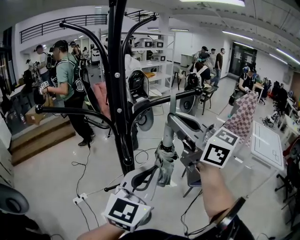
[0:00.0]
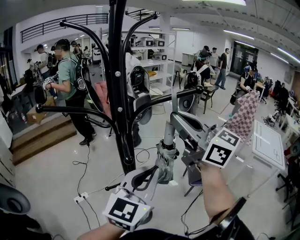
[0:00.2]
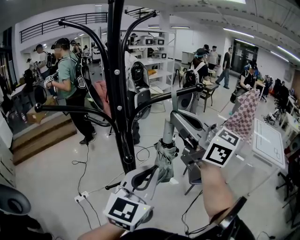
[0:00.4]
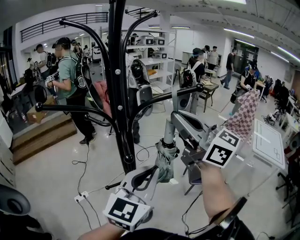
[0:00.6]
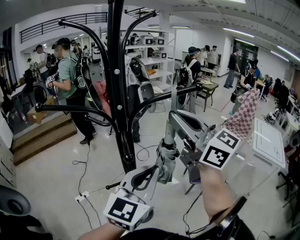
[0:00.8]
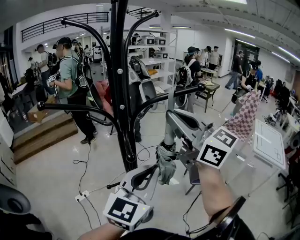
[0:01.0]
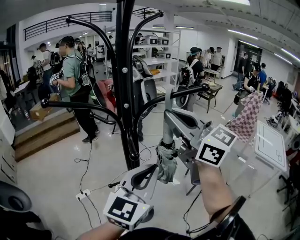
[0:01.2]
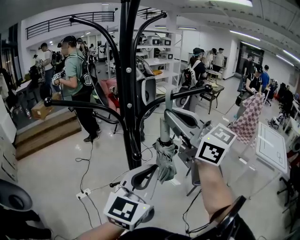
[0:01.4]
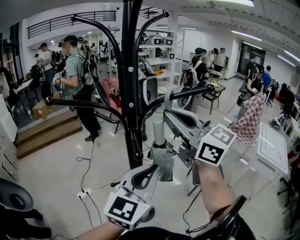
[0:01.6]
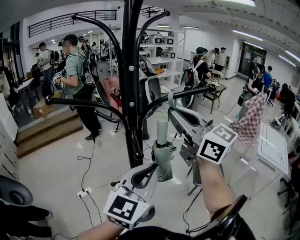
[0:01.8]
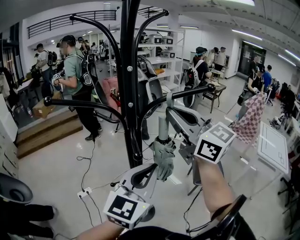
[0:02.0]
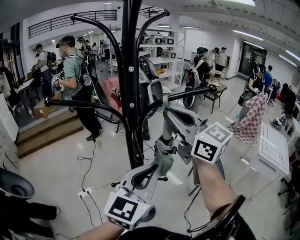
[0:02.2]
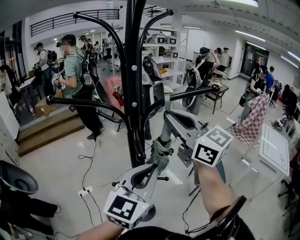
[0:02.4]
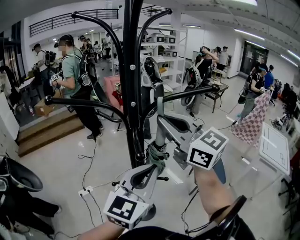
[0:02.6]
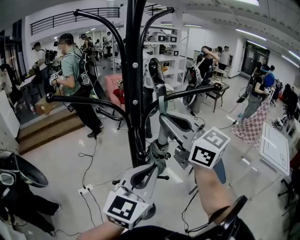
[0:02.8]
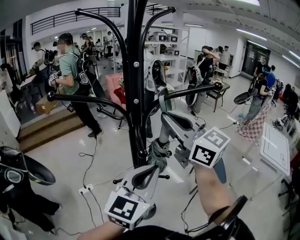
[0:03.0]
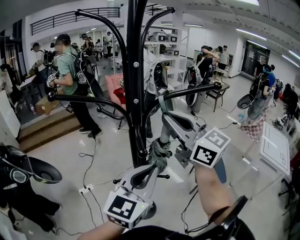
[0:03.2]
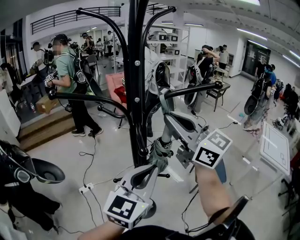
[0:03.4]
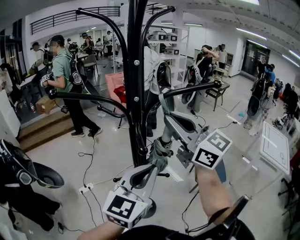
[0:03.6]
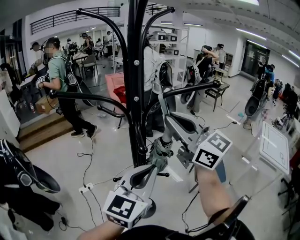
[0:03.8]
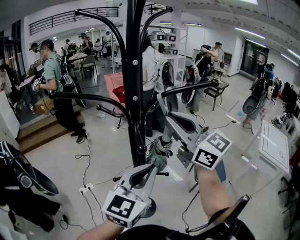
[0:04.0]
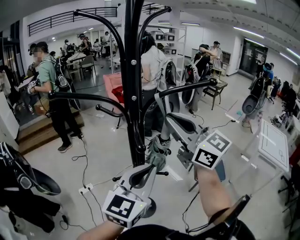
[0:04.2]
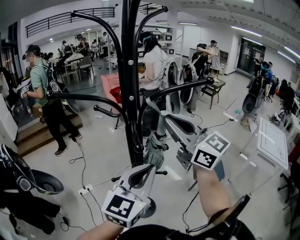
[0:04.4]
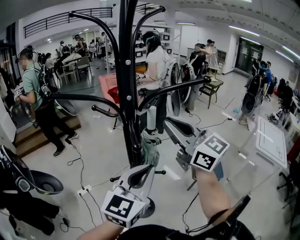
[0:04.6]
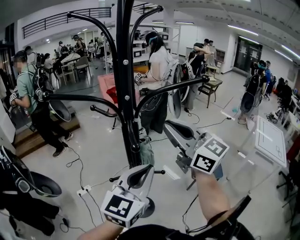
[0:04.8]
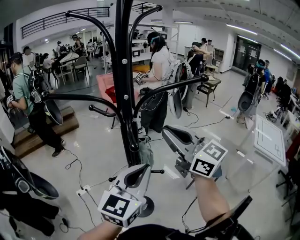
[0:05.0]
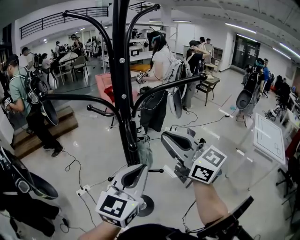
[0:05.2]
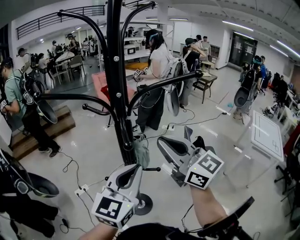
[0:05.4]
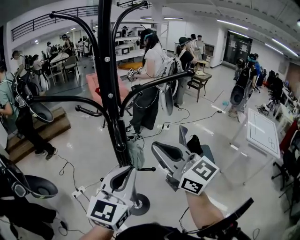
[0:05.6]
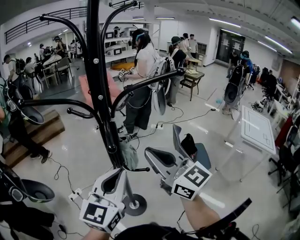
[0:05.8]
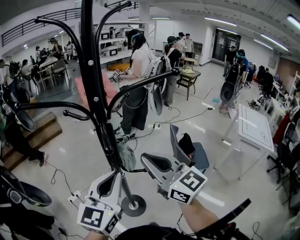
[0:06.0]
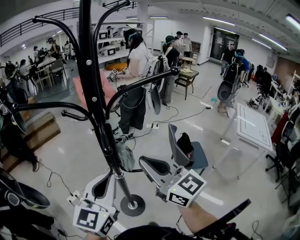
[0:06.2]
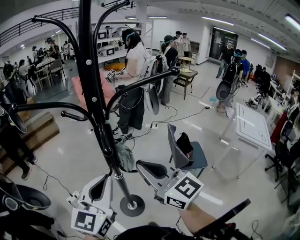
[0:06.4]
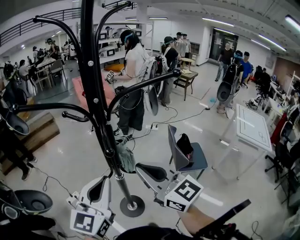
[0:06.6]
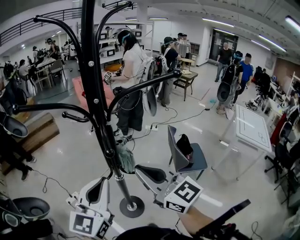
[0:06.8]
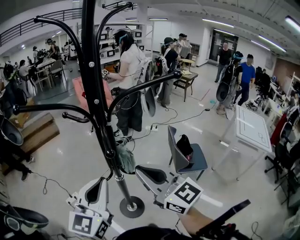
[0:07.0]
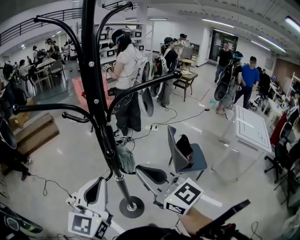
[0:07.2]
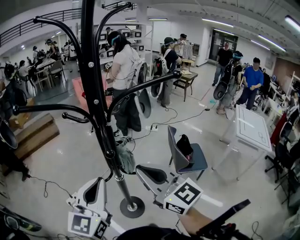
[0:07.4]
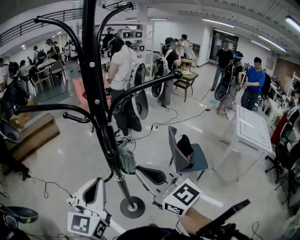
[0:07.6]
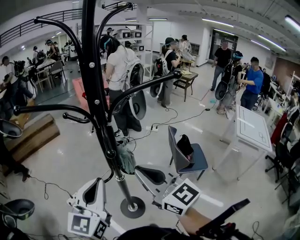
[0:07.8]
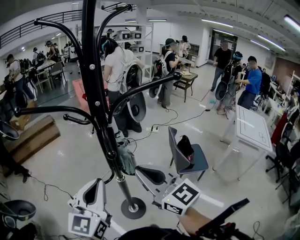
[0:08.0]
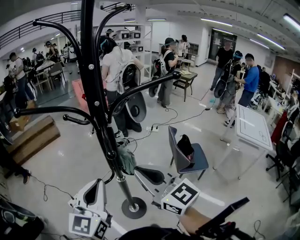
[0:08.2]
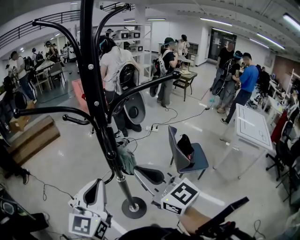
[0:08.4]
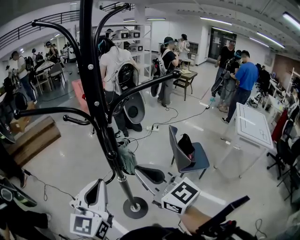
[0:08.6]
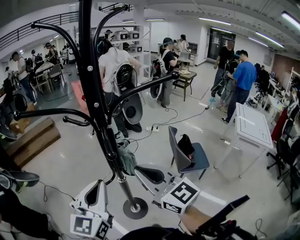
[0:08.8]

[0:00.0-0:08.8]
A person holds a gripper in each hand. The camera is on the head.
0:00.0 to 0:01.4: The grippers move only a little.
0:01.4 to 0:04.4: The grippers move only a little.
0:04.4 to 0:05.8: The right gripper goes roughly 10 cm downward and backward.
0:05.8 to 0:07.4: The left gripper moves to the left, about 5 cm.
0:07.4 to 0:08.8: There are only small adjustments of the grippers.

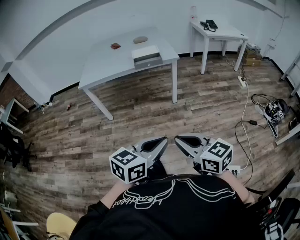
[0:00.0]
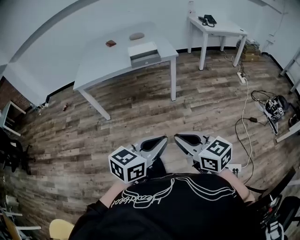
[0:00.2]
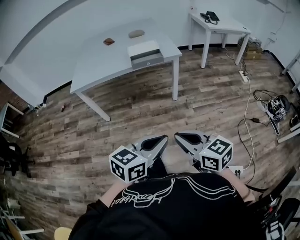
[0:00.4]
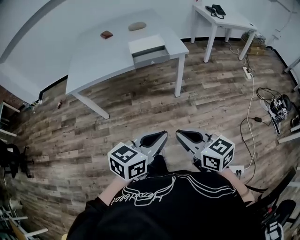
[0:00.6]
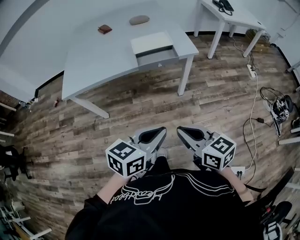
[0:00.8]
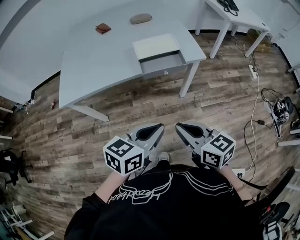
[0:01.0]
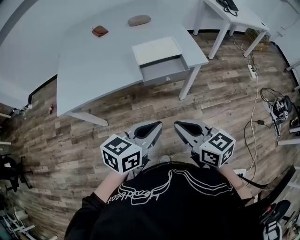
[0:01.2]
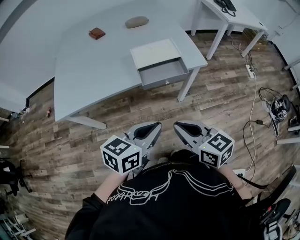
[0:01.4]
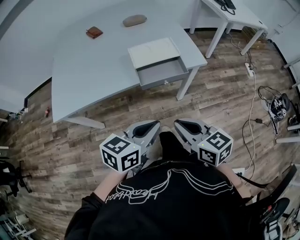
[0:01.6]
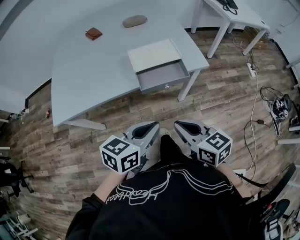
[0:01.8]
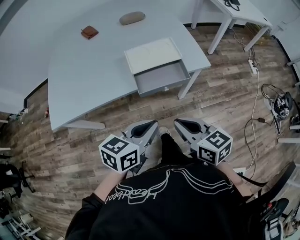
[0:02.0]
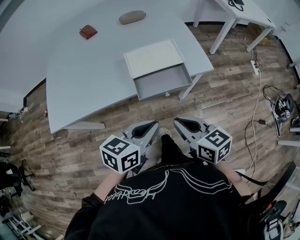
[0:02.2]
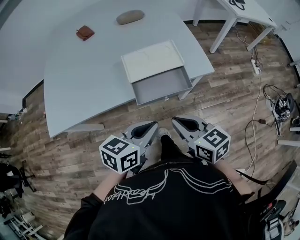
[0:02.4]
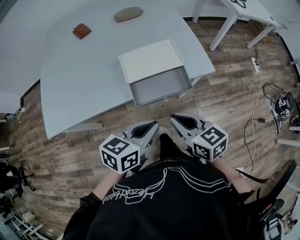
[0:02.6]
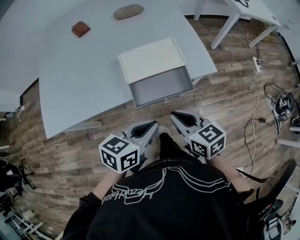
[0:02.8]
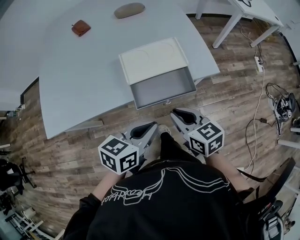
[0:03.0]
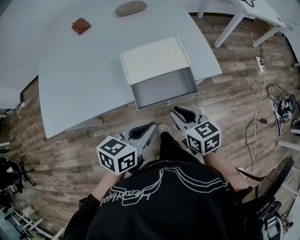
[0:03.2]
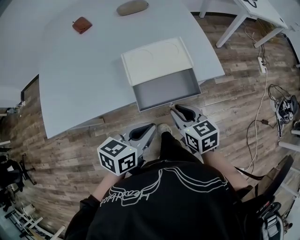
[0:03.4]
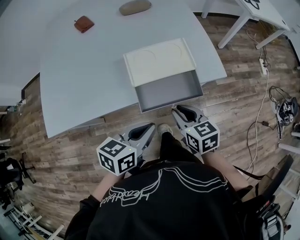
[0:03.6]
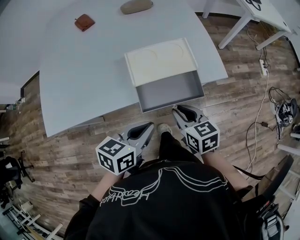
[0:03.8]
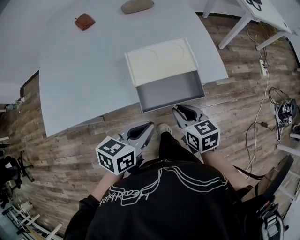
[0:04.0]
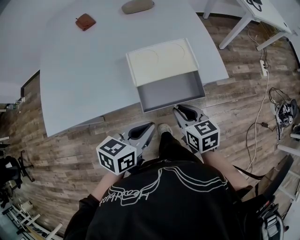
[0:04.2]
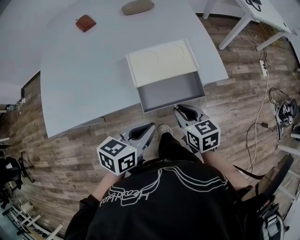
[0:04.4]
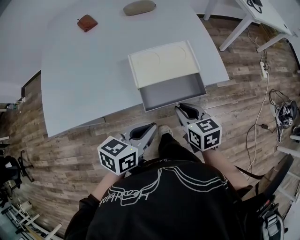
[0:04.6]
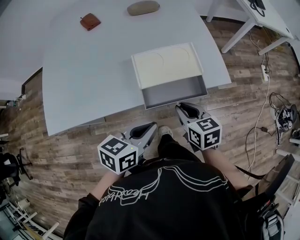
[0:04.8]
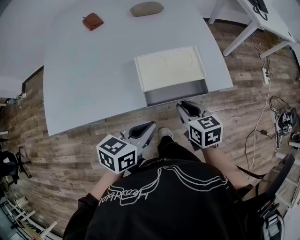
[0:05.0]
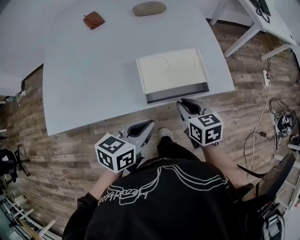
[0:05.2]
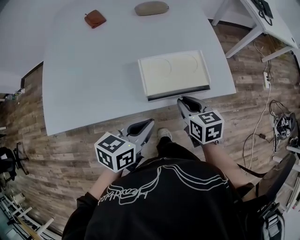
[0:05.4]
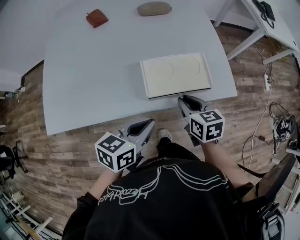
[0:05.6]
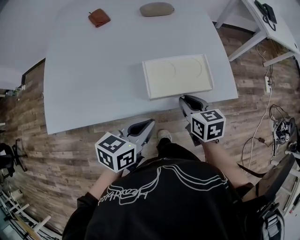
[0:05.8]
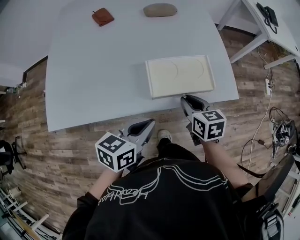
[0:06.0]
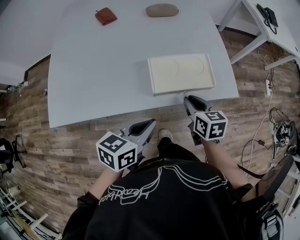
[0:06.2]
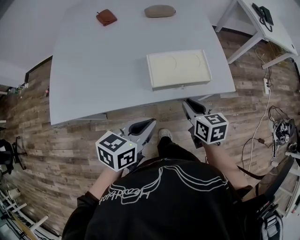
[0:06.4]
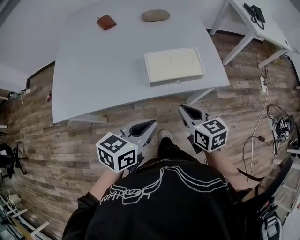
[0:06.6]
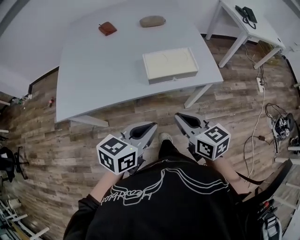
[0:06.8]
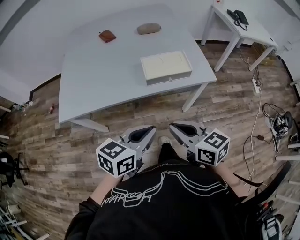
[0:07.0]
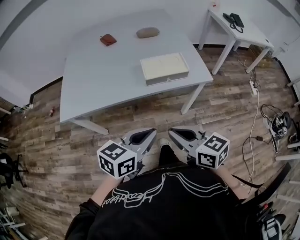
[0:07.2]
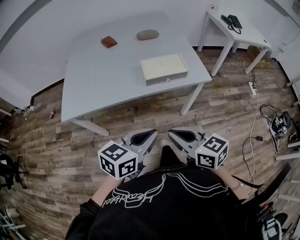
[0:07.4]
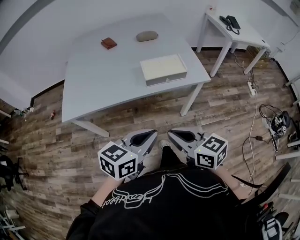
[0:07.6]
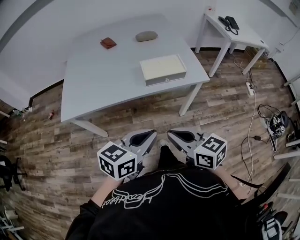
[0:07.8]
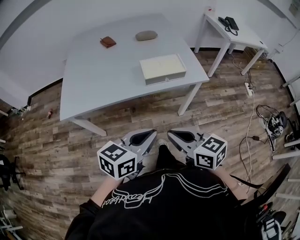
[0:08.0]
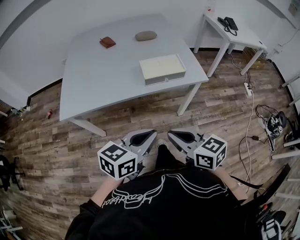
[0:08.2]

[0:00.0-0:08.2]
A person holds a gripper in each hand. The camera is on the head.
0:00.0 to 0:01.6: Both grippers are carried forward, approximately 50 cm.
0:01.6 to 0:03.2: The grippers both shift forward and downward by some 20 cm.
0:03.2 to 0:05.0: The left gripper changes place by about 5 cm. The right gripper heads forward, covering roughly 5 cm.
0:05.0 to 0:06.6: The left gripper moves approximately 5 cm. The right gripper is displaced upward and backward by about 10 cm.
0:06.6 to 0:08.2: Both grippers travel together backward and upward, some 20 cm.

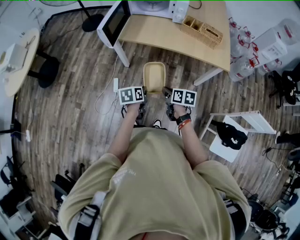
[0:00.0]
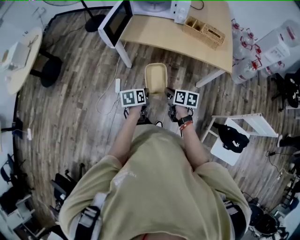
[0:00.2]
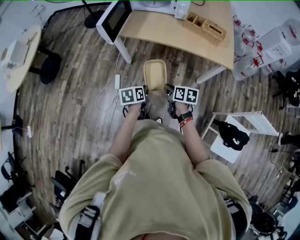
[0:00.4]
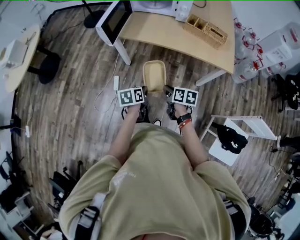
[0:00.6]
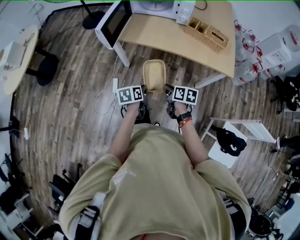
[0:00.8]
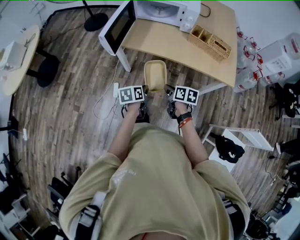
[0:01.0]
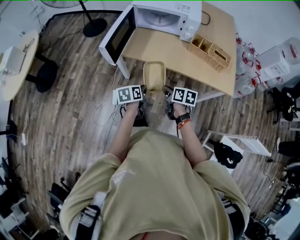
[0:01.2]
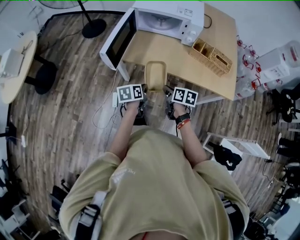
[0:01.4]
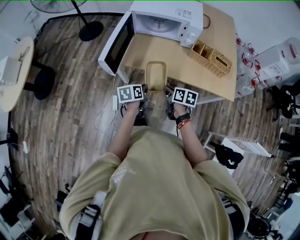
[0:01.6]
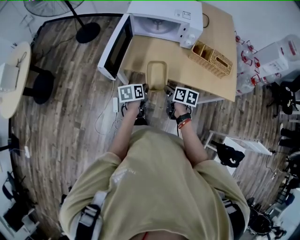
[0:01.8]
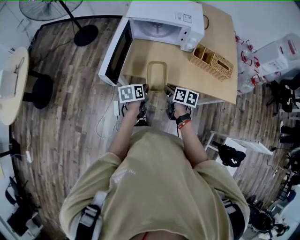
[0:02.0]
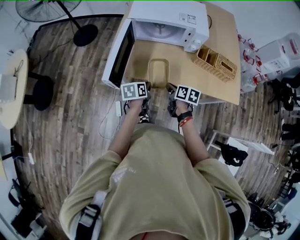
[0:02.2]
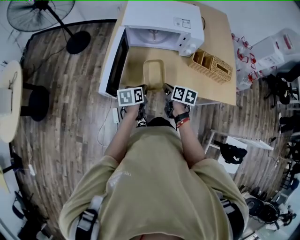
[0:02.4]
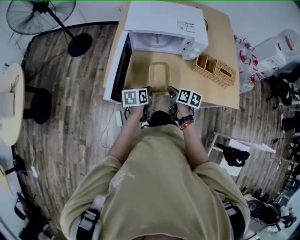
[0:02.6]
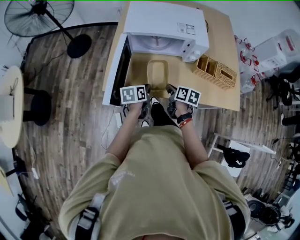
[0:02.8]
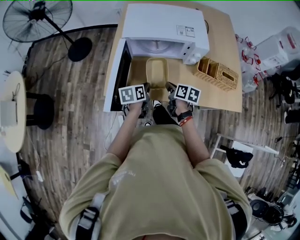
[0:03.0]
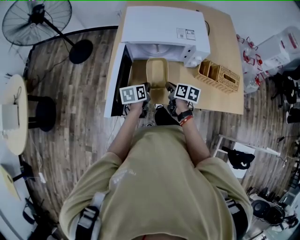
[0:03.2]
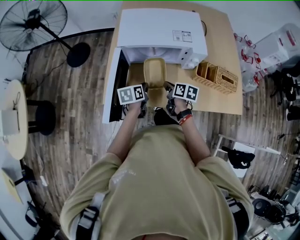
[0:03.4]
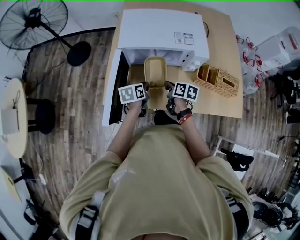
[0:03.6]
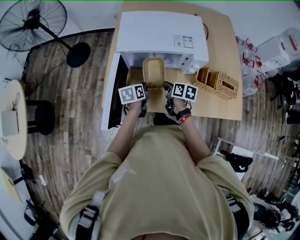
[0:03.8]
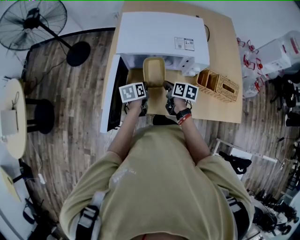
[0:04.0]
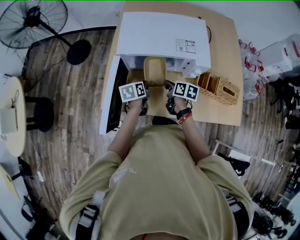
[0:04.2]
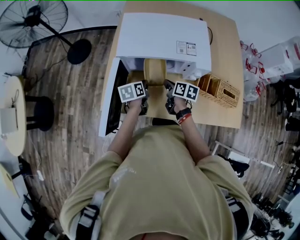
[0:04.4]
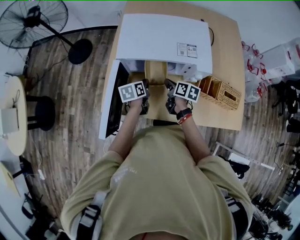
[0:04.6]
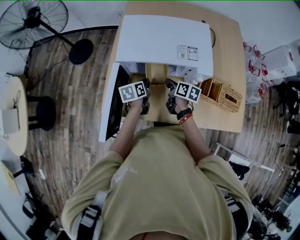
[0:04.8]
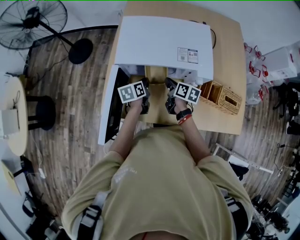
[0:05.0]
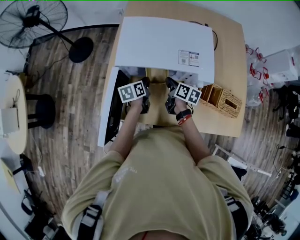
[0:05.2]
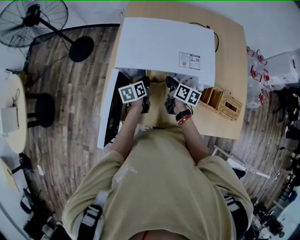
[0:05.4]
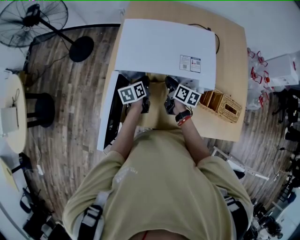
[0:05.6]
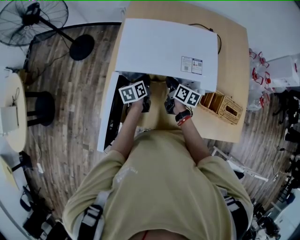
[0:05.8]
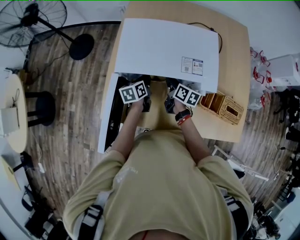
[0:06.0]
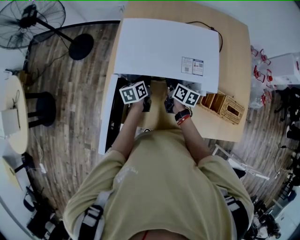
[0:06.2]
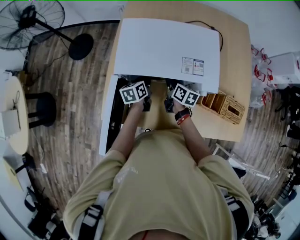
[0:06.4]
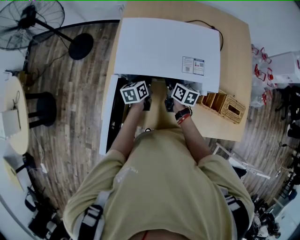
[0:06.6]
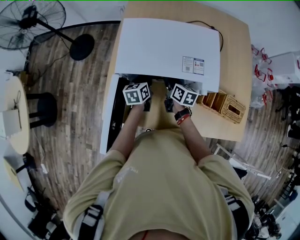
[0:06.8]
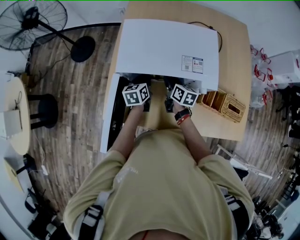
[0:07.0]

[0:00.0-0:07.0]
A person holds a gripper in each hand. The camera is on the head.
0:00.0 to 0:01.4: The grippers both shift forward by about 20 cm.
0:01.4 to 0:02.8: The two grippers go about 20 cm forward.
0:02.8 to 0:04.2: Both grippers move forward, some 15 cm.
0:04.2 to 0:05.6: The two grippers go roughly 10 cm forward.
0:05.6 to 0:07.0: The right gripper opens.
